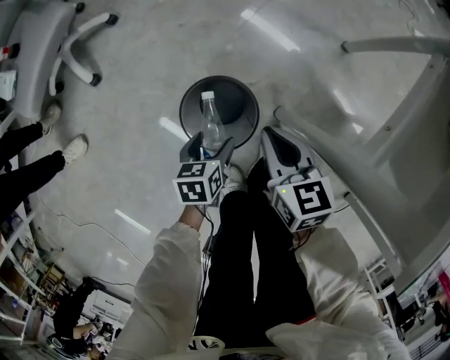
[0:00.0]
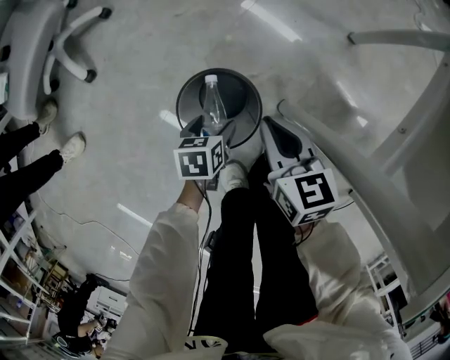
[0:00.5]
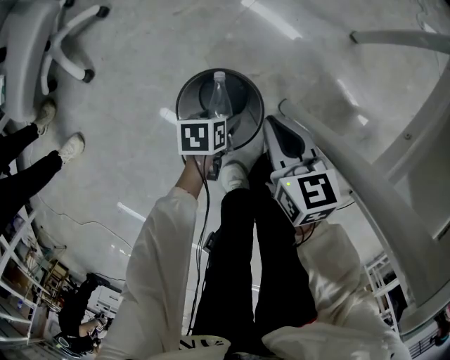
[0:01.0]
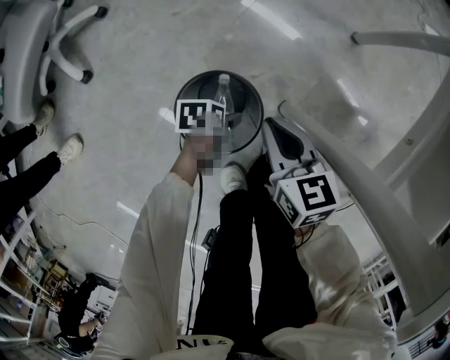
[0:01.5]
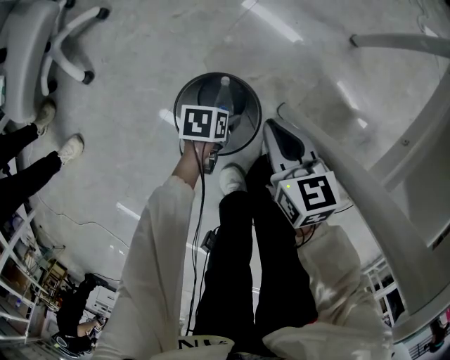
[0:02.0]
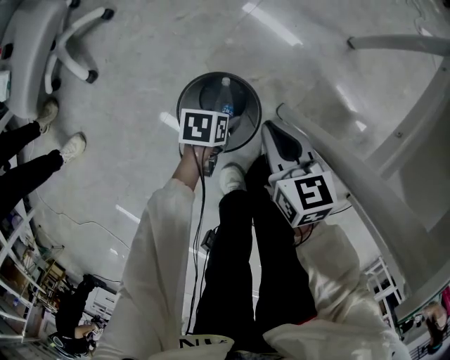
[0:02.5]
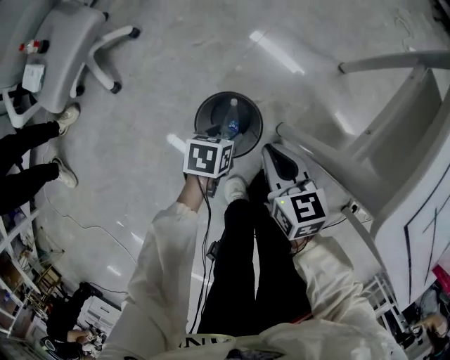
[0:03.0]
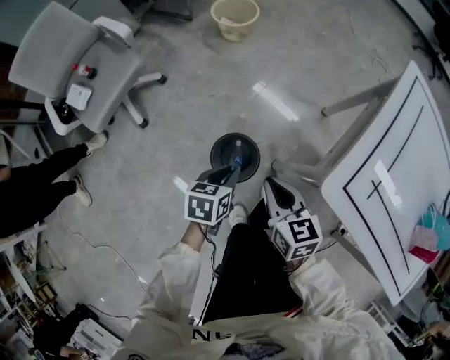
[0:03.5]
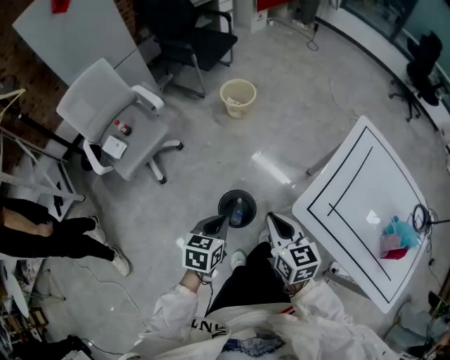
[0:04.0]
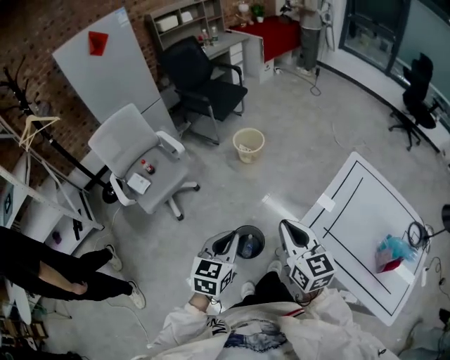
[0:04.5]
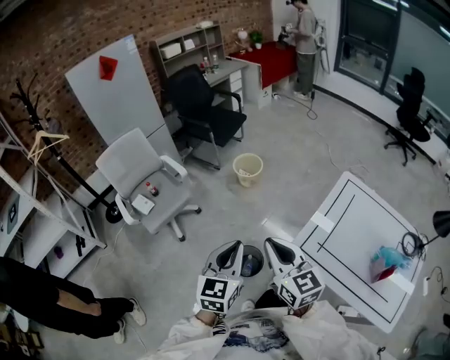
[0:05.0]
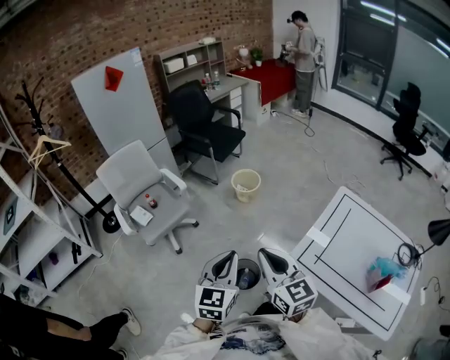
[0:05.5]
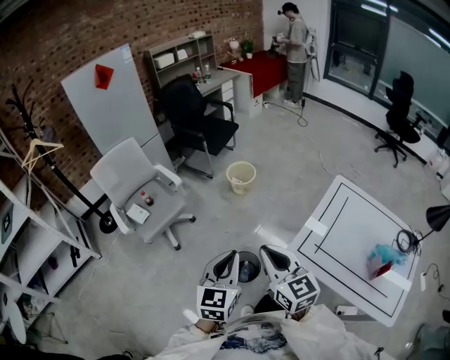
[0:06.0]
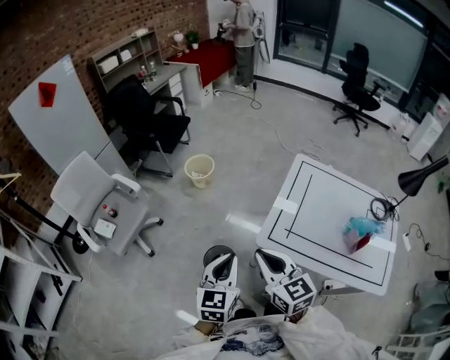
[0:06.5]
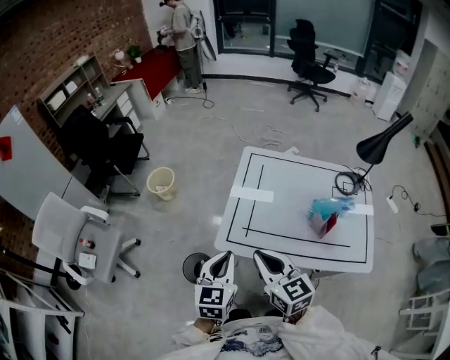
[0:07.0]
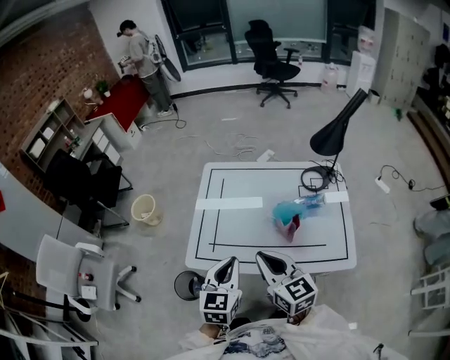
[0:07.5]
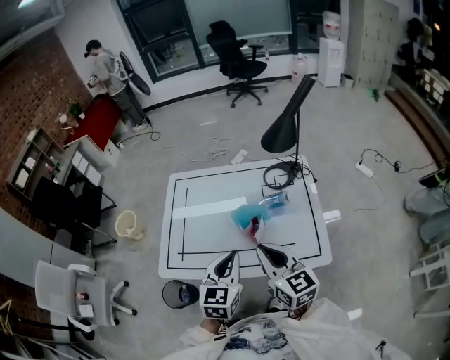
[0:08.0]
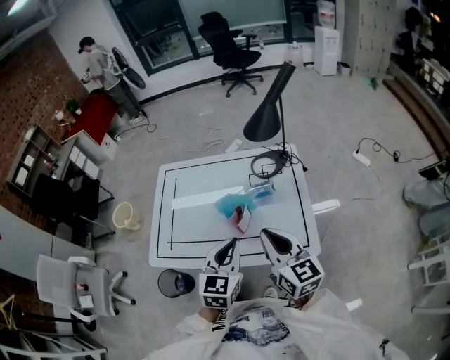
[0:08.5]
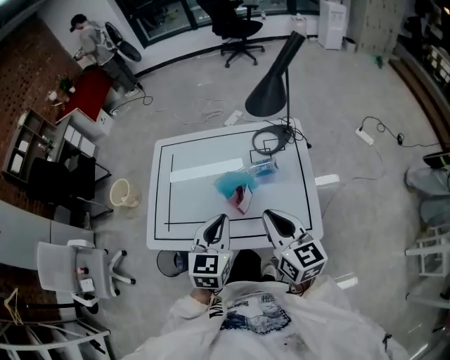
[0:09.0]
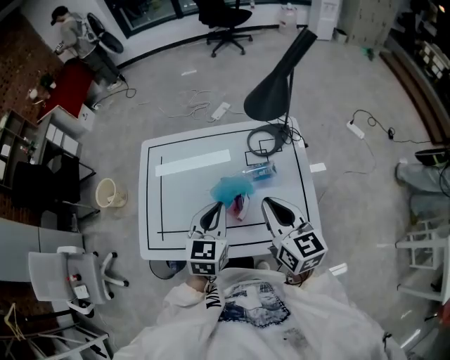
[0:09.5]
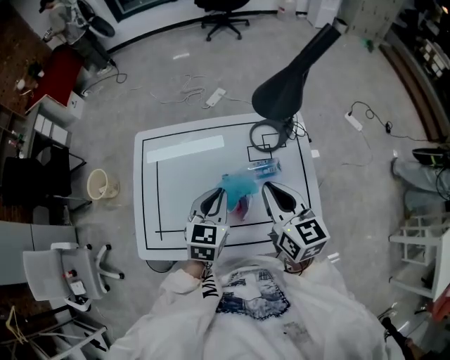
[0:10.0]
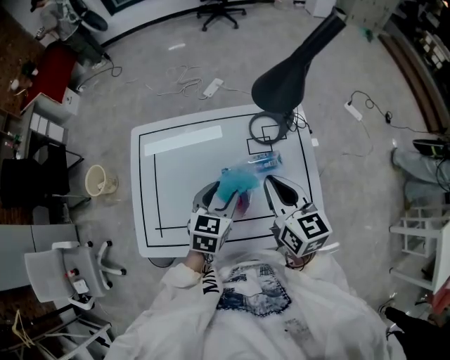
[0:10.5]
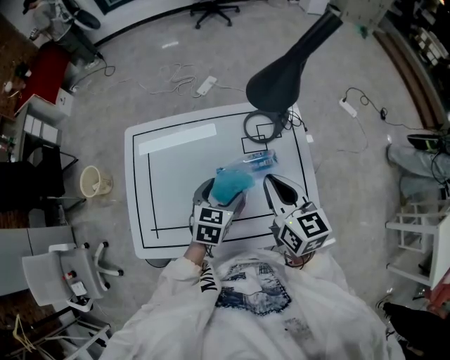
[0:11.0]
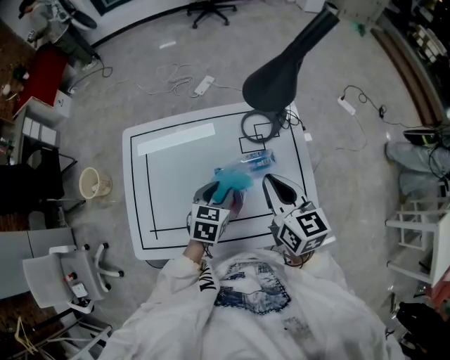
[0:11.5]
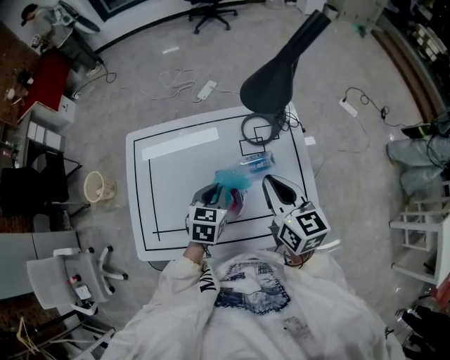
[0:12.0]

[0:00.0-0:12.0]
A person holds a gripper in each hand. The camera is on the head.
0.0 to 2.0 s: The right gripper changes place by some 5 cm, while the left gripper heads downward, covering roughly 10 cm, and turns by roughly 30 degrees.
2.0 to 4.0 s: The grippers both shift upward by about 50 cm. The left gripper changes its angle by approximately 40 degrees, and closes its fingers.
4.0 to 6.0 s: Both grippers travel together upward, roughly 25 cm. The left gripper turns by roughly 30 degrees. The right gripper turns by roughly 20 degrees.
6.0 to 8.0 s: Both grippers are carried about 60 cm. The right gripper changes its angle by roughly 40 degrees, while the left gripper rotates roughly 40 degrees.
8.0 to 10.0 s: The left gripper moves forward, about 15 cm, while the right gripper is displaced forward and to the right by roughly 15 cm.
10.0 to 12.0 s: The left gripper is displaced downward by approximately 5 cm, and opens, then closes again.

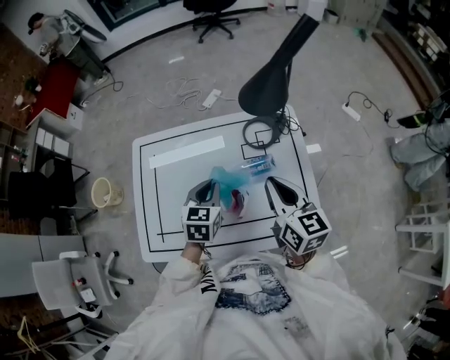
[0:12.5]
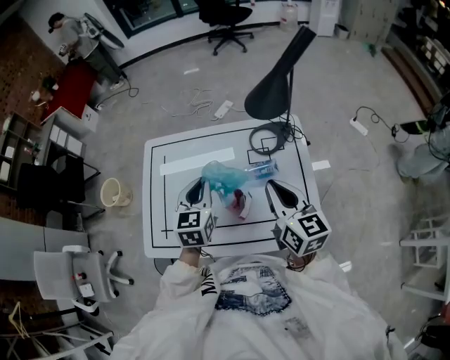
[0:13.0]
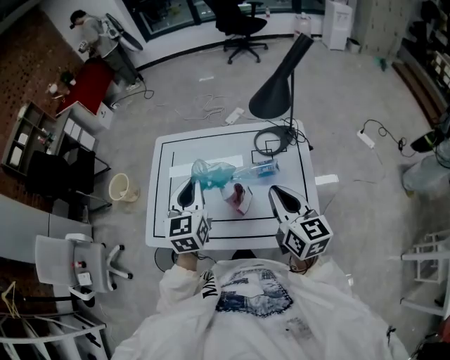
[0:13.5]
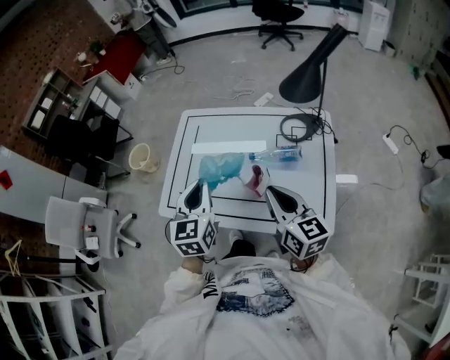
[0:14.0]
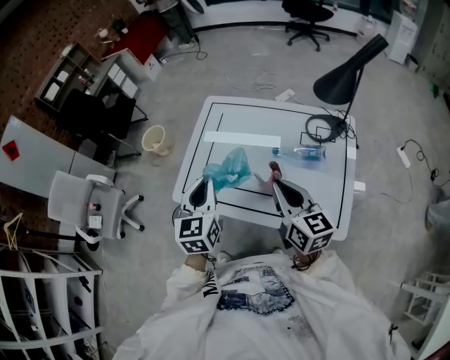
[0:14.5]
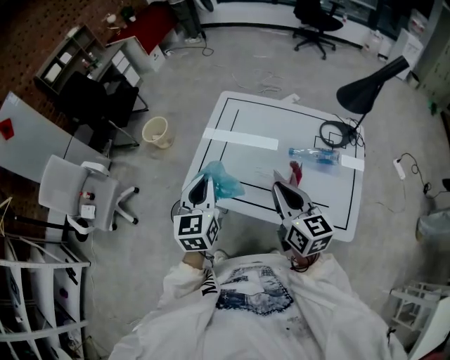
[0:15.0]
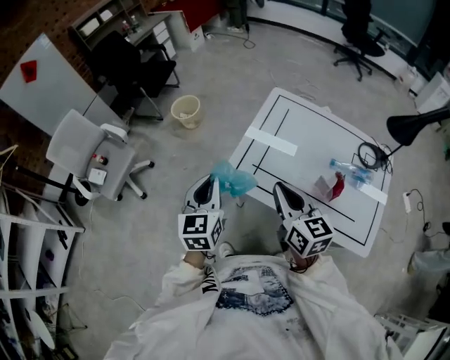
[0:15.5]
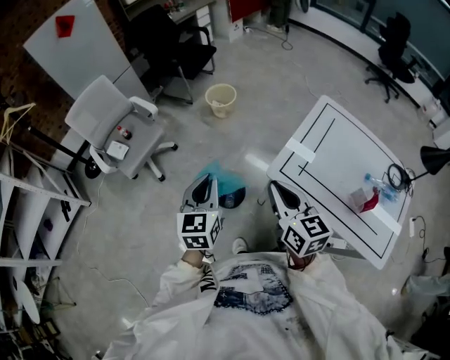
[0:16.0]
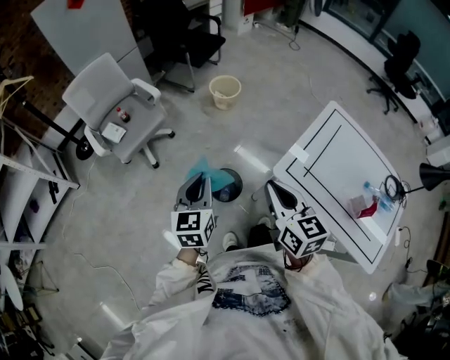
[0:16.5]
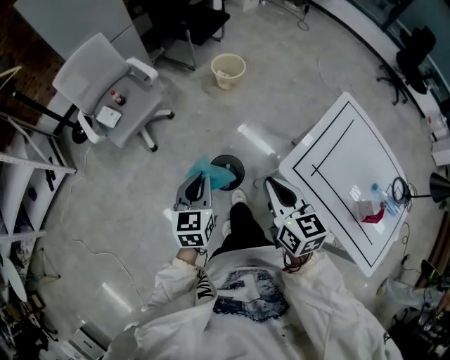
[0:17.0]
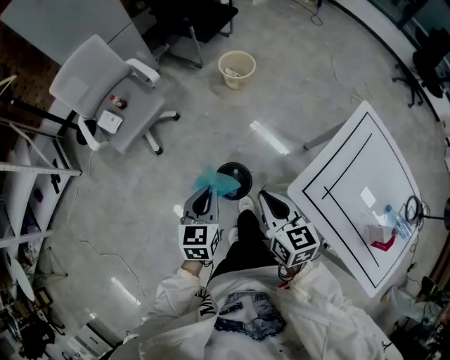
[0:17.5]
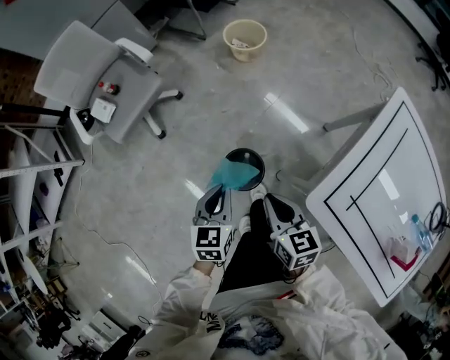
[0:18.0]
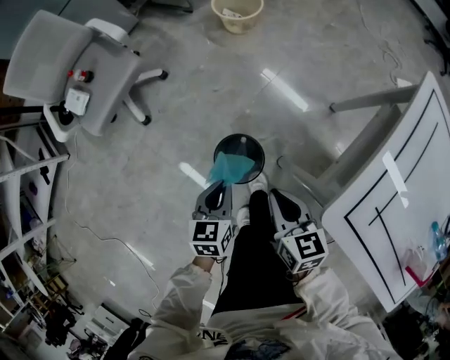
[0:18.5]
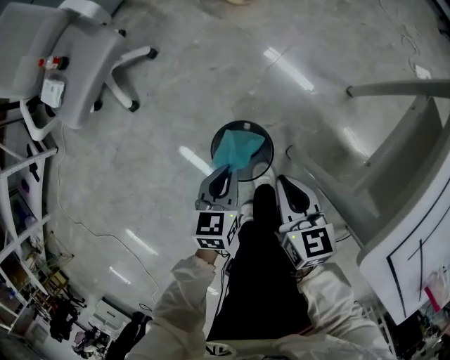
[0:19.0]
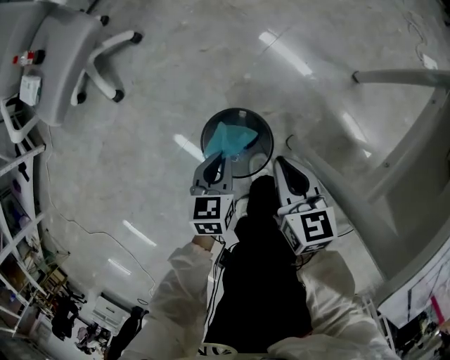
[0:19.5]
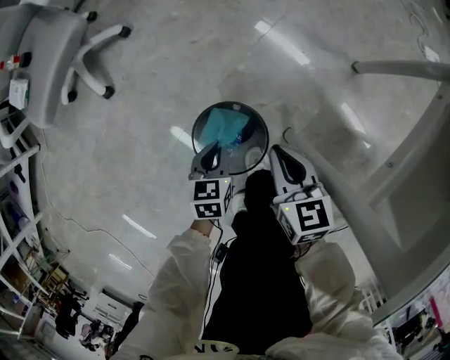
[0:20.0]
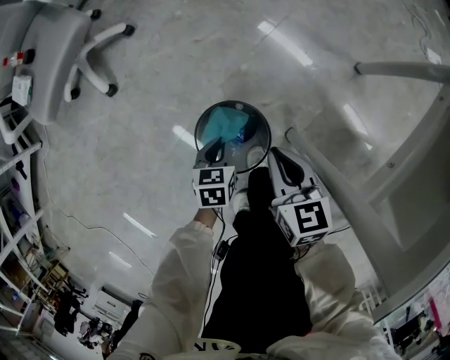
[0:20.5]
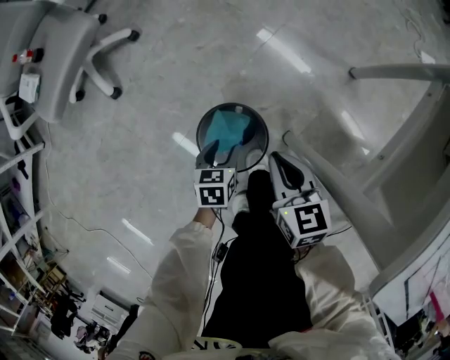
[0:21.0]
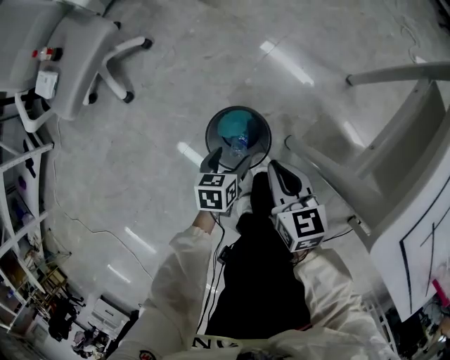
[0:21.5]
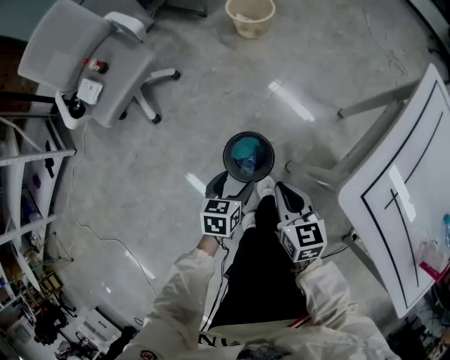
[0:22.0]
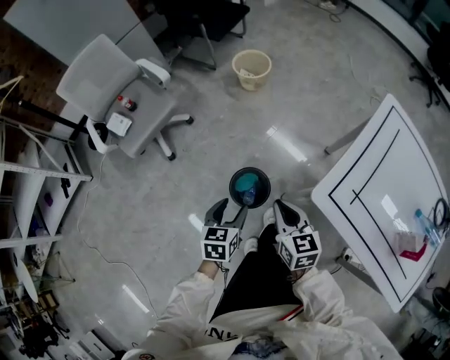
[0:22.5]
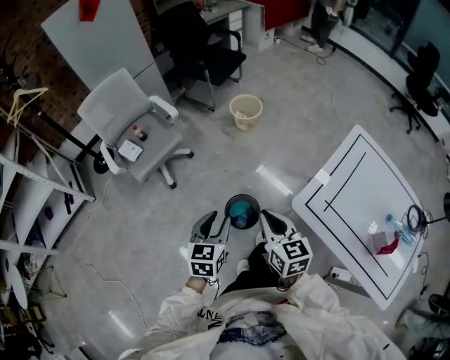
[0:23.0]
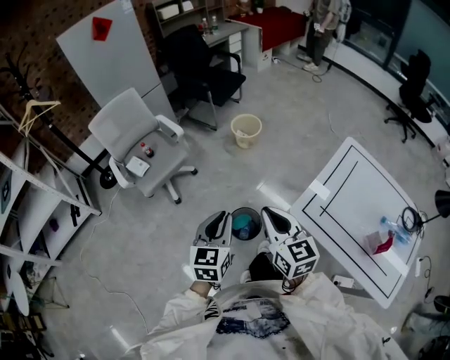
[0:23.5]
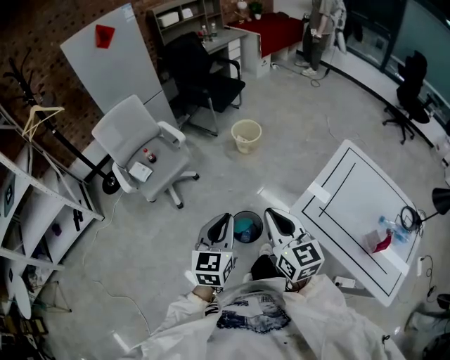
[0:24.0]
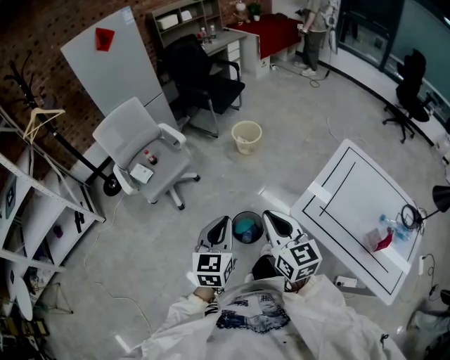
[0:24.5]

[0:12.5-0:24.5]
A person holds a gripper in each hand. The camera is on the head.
12.5 to 14.5 s: The left gripper shifts by roughly 25 cm, and changes its angle by some 40 degrees. The right gripper ends up some 15 cm from where it was, and swivels about 20 degrees.
14.5 to 16.5 s: Both grippers are carried to the left, approximately 50 cm. The right gripper swivels approximately 30 degrees, while the left gripper changes its angle by approximately 30 degrees.
16.5 to 18.5 s: The grippers both shift downward by some 40 cm. The right gripper turns by some 20 degrees. The left gripper swivels approximately 30 degrees.
18.5 to 20.5 s: Both grippers travel together downward, about 30 cm.
20.5 to 22.5 s: Both grippers travel together upward, approximately 40 cm. The left gripper opens its fingers.
22.5 to 24.5 s: The grippers both shift upward by approximately 30 cm. The right gripper rotates some 20 degrees. The left gripper rotates approximately 30 degrees, and closes.

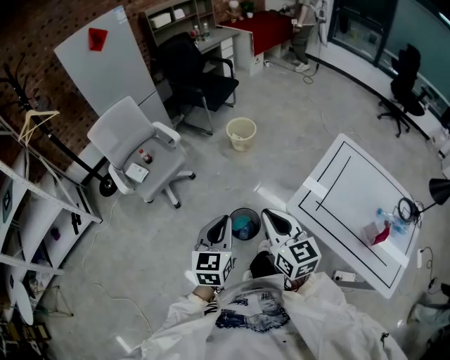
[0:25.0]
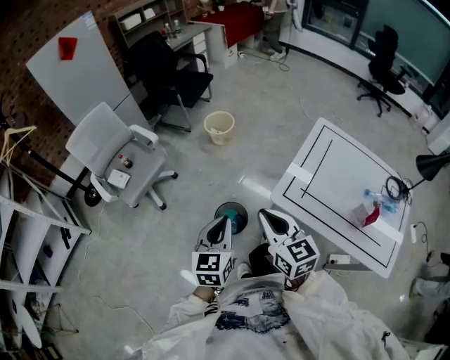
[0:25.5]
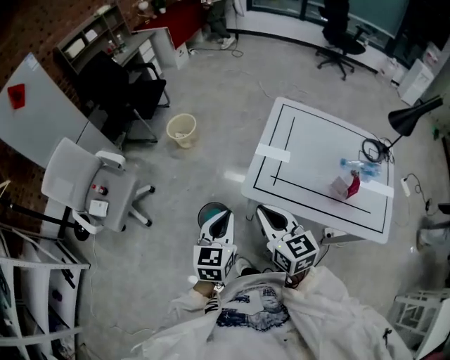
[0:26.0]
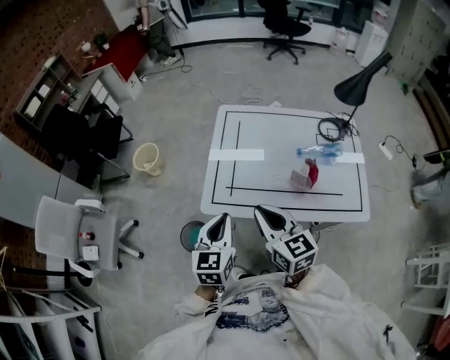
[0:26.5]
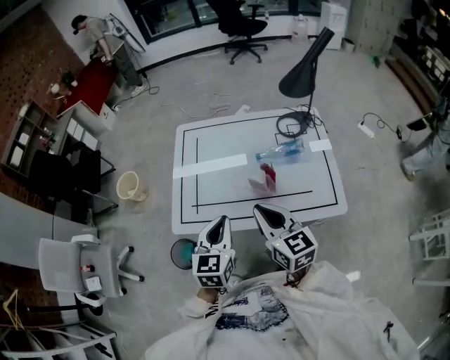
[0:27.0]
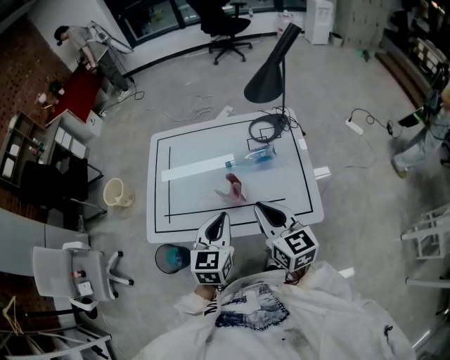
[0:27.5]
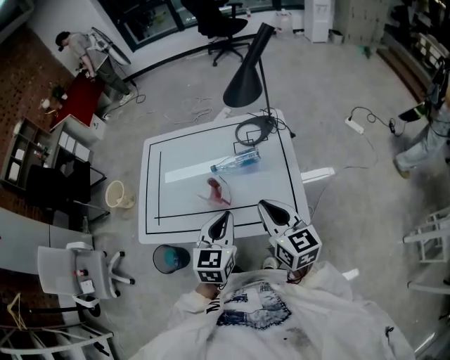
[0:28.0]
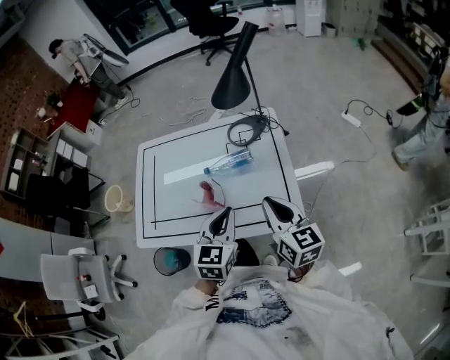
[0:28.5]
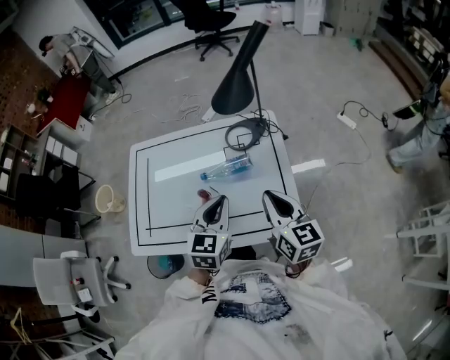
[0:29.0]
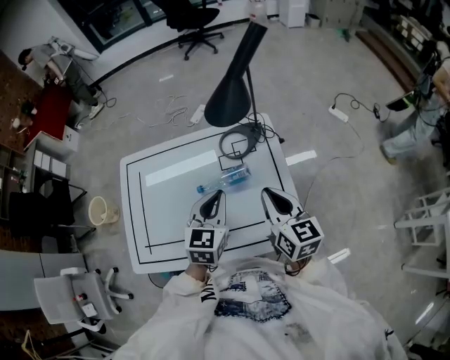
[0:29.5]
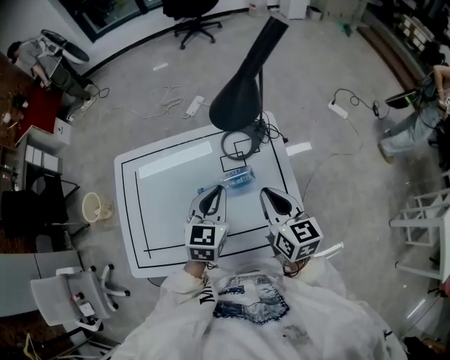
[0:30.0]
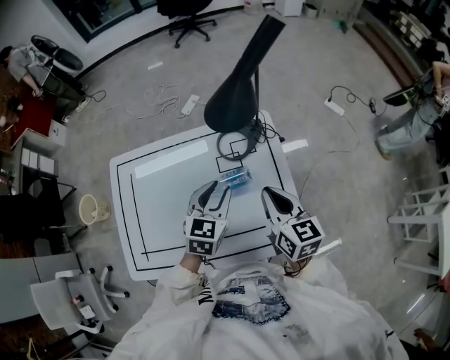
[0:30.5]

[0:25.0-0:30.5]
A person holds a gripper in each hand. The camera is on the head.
25.0 to 27.0 s: Both grippers are carried roughly 50 cm. The right gripper swivels approximately 40 degrees. Meanwhile the left gripper swivels some 40 degrees.
27.0 to 28.5 s: Both grippers travel together to the right, roughly 25 cm.
28.5 to 30.5 s: The grippers both shift forward by some 20 cm.
